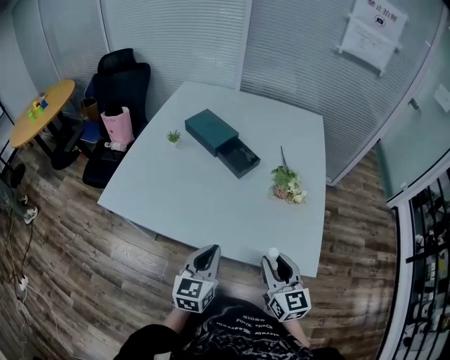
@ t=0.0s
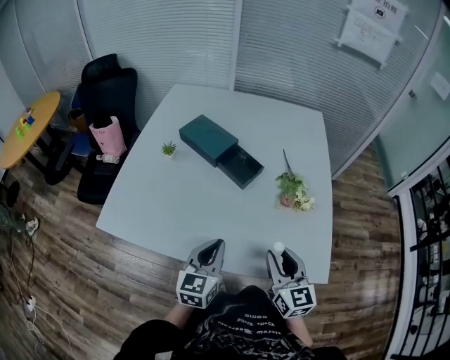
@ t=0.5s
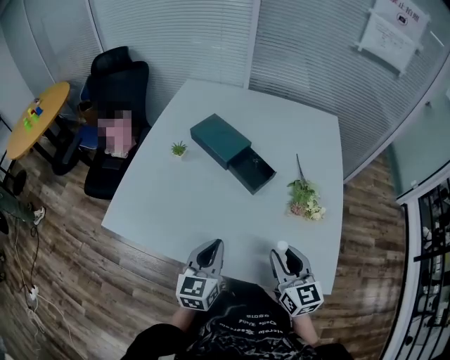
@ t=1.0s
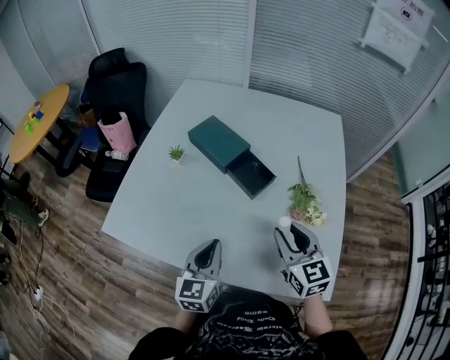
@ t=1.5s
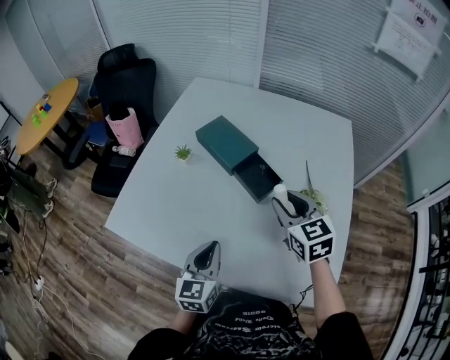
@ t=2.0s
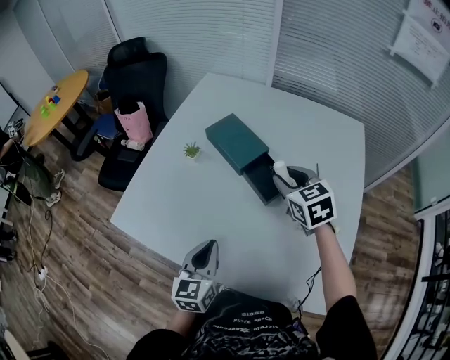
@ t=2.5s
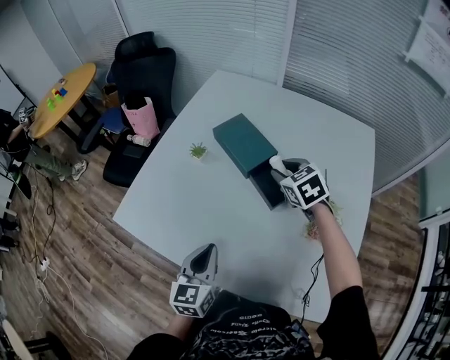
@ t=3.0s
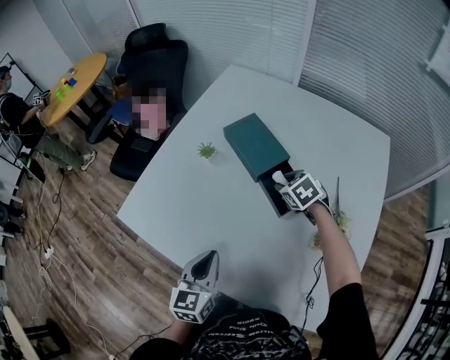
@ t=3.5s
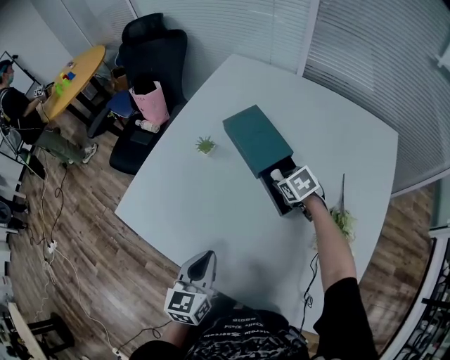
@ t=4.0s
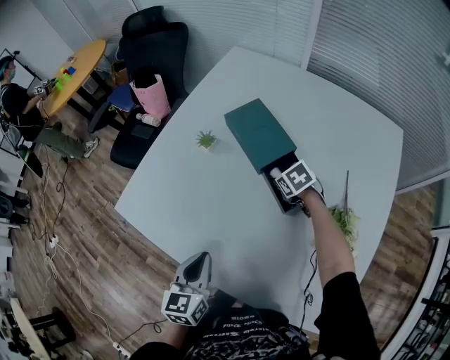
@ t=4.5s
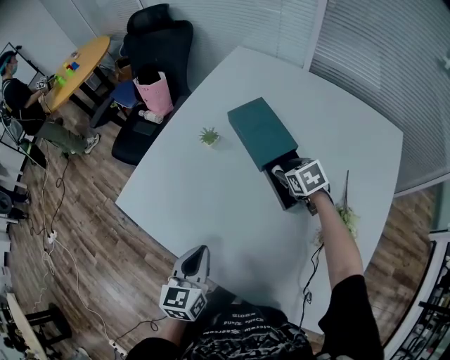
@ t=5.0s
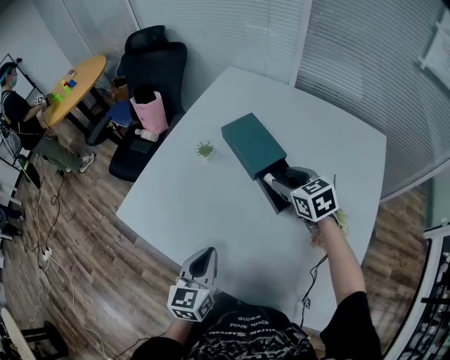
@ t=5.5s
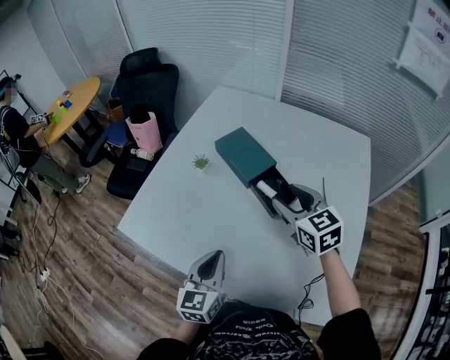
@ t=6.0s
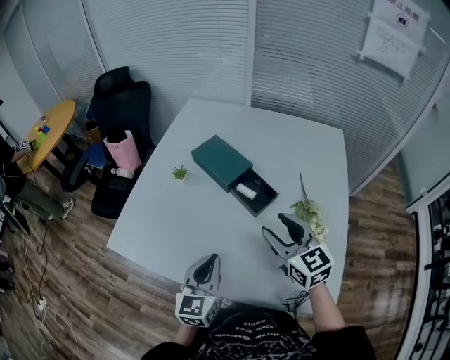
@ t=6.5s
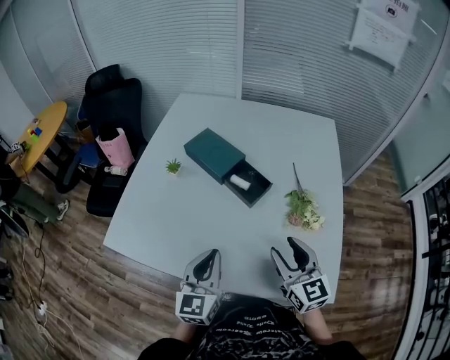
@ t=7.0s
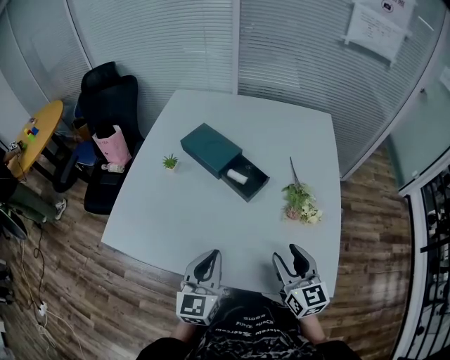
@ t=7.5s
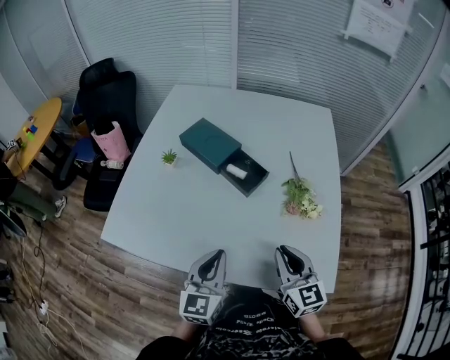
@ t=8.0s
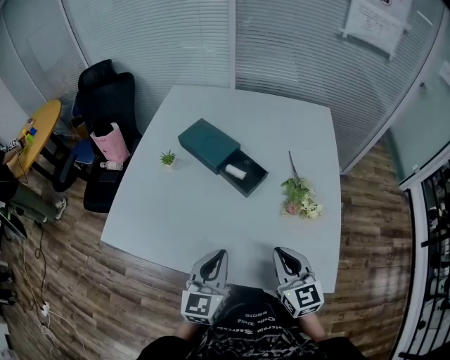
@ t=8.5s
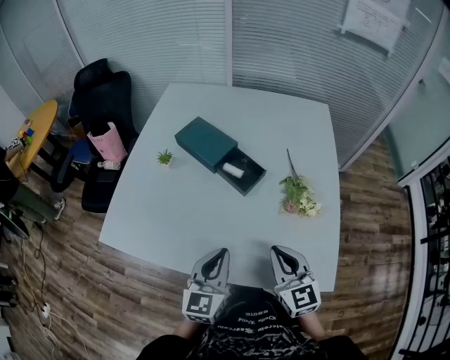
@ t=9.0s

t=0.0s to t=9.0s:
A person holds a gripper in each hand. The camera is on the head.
t=0.0s to t=2.0s: The left gripper moves forward, about 15 cm. Meanwhile the right gripper travels forward by roughly 30 cm.
t=2.0s to t=4.5s: The left gripper changes place by some 5 cm, while the right gripper is displaced downward and forward by roughly 30 cm, and tilts its fingers about 40 degrees downward.
t=4.5s to t=7.0s: The right gripper changes place by some 40 cm, and points its fingers approximately 50 degrees further upward. The left gripper is displaced upward by approximately 10 cm, and changes its angle by roughly 30 degrees.
t=7.0s to t=9.0s: The right gripper closes its fingers.

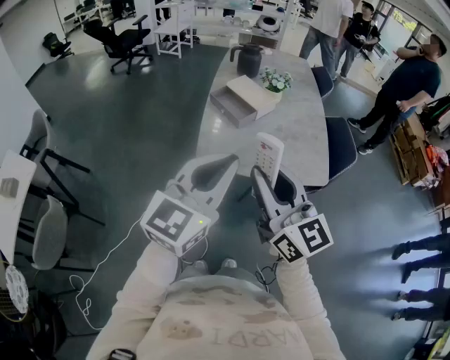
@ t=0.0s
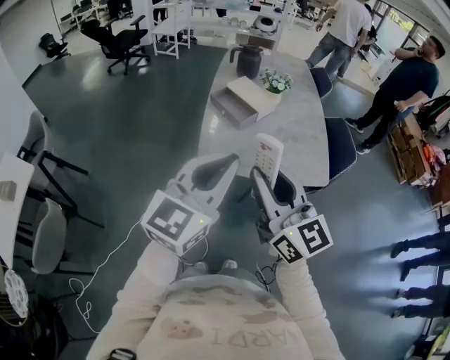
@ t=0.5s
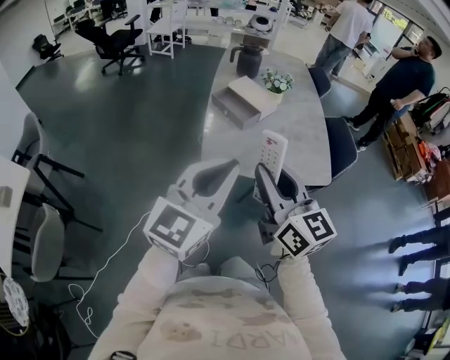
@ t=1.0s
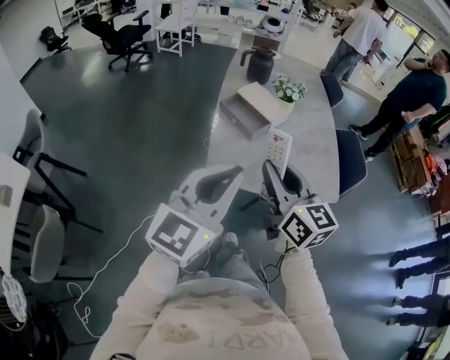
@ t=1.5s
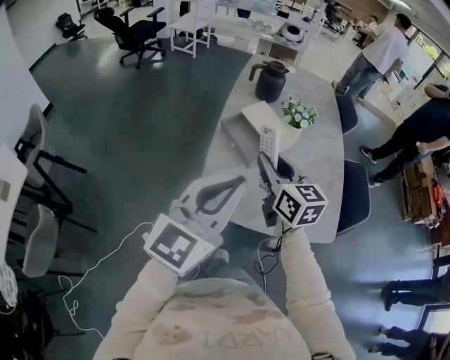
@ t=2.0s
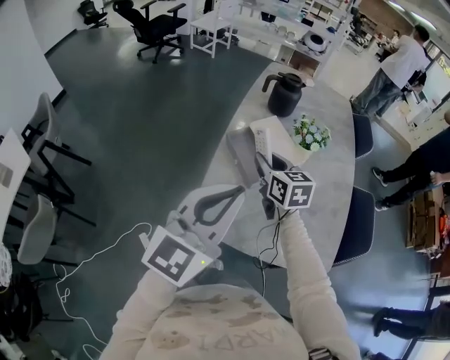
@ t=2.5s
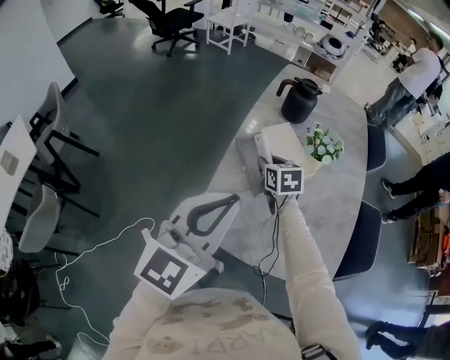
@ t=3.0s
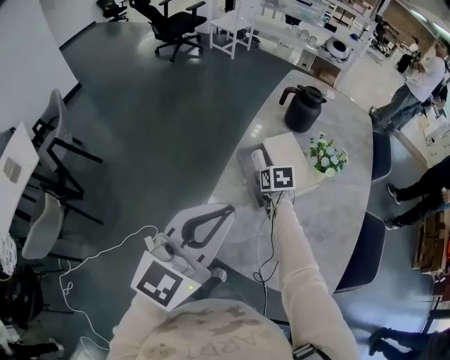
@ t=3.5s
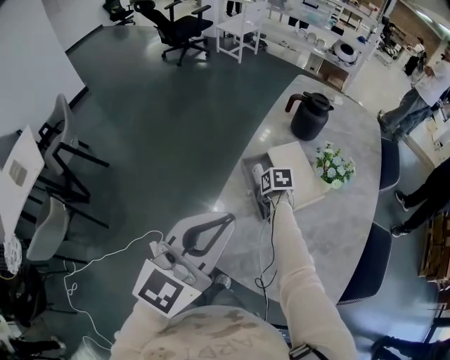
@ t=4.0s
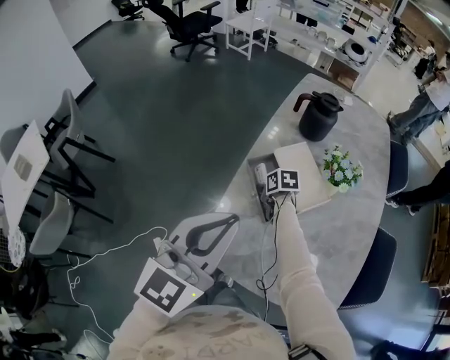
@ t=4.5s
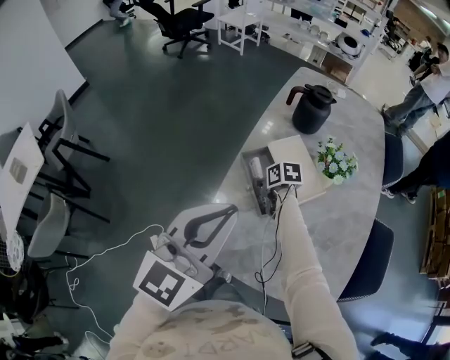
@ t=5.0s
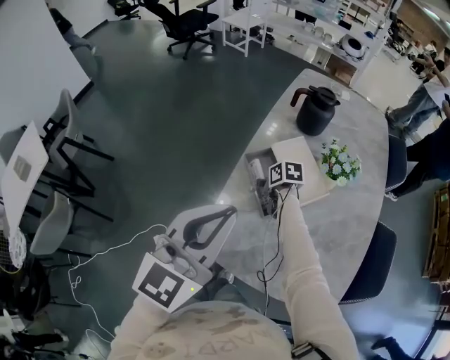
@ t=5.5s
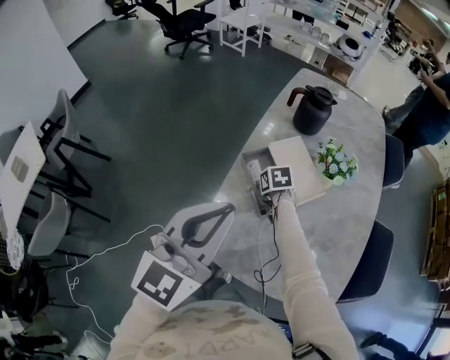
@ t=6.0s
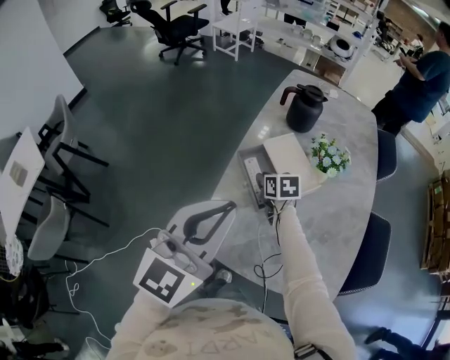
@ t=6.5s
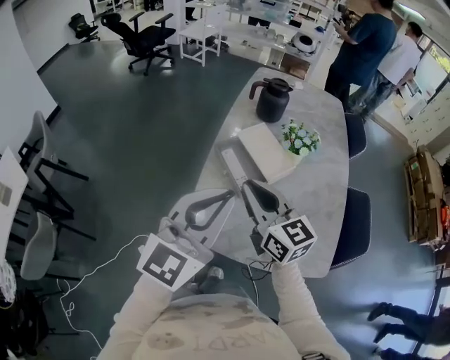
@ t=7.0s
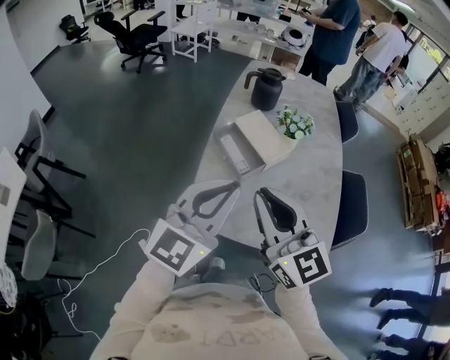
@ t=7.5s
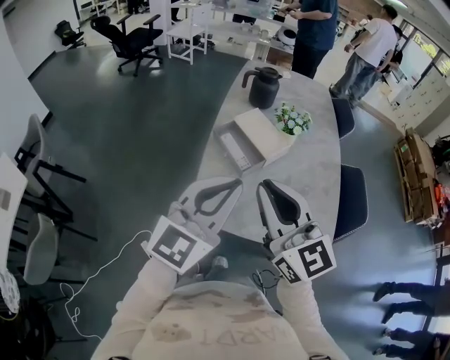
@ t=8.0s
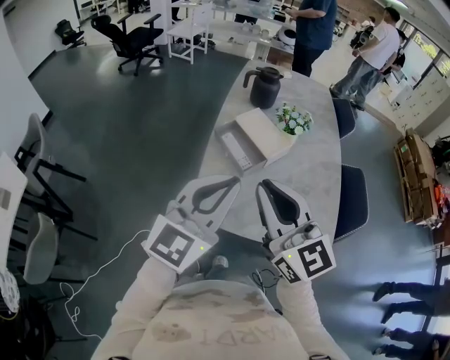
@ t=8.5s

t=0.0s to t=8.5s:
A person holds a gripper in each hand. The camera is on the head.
t=0.0s to t=2.0s: The right gripper moves forward, approximately 30 cm, and swivels about 20 degrees. Meanwhile the left gripper heads forward, covering some 20 cm.
t=2.0s to t=4.0s: The right gripper is displaced downward and forward by some 40 cm, and tilts its fingers about 50 degrees downward. Meanwhile the left gripper is displaced forward by about 15 cm.
t=4.0s to t=6.5s: The right gripper goes about 5 cm upward.
t=6.5s to t=8.5s: The right gripper goes about 50 cm upward and backward, and angles its fingers upward, by some 50 degrees. The left gripper heads backward, covering roughly 10 cm.

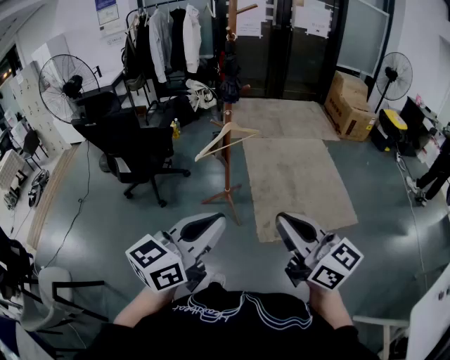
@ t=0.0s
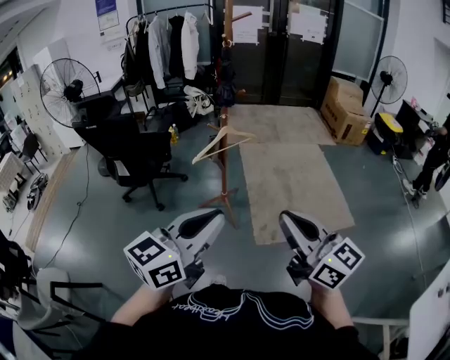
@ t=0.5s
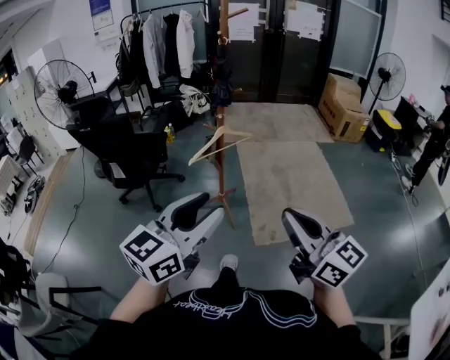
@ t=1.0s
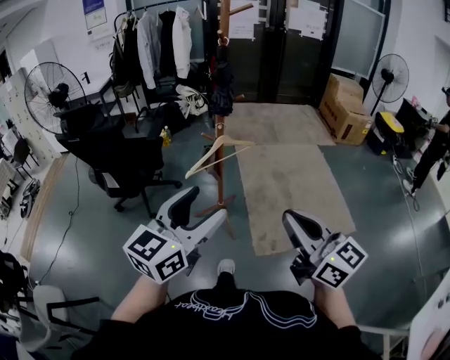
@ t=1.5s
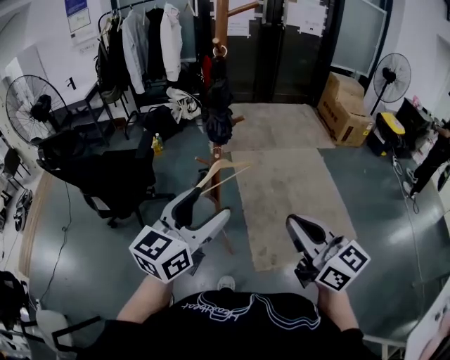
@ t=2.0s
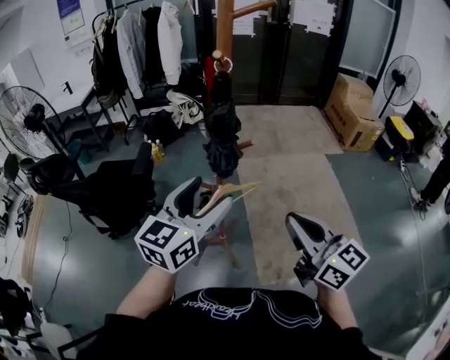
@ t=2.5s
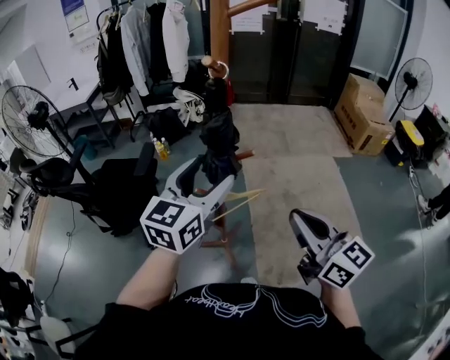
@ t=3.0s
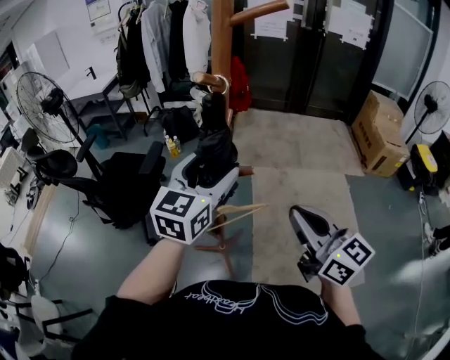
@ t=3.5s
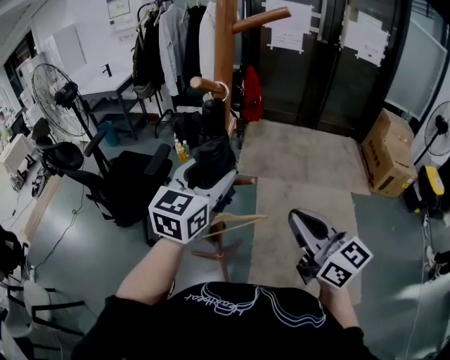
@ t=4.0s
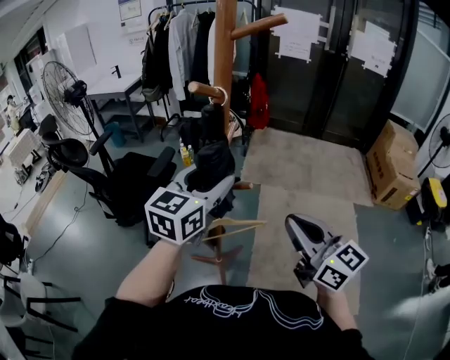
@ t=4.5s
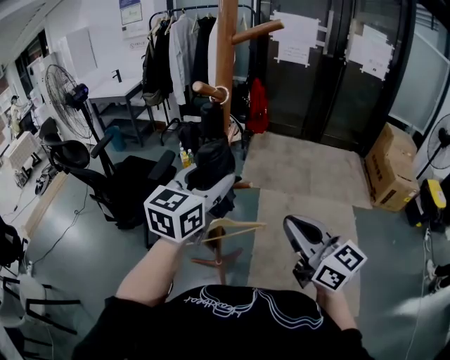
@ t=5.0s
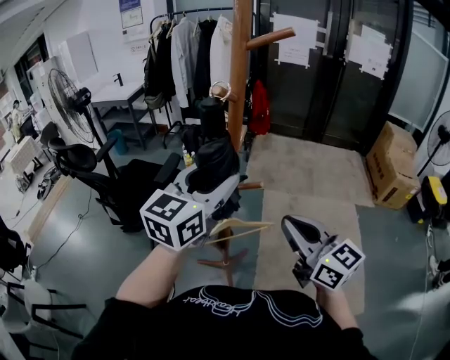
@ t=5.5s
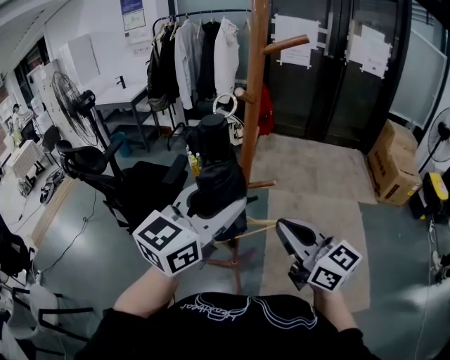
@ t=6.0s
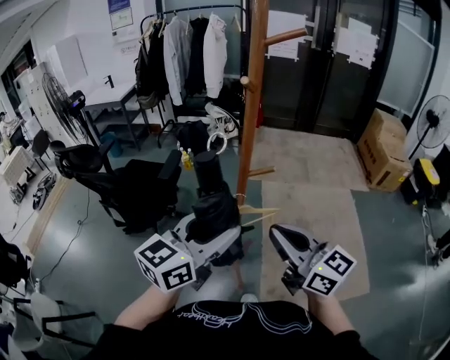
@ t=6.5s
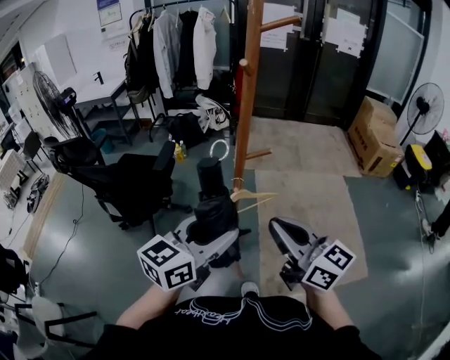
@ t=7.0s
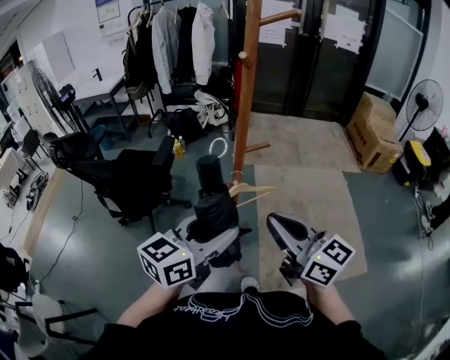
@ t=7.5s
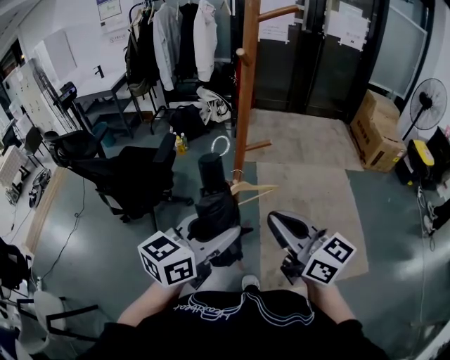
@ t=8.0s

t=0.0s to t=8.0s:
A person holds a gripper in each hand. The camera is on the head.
t=0.0s to t=2.0s: The two grippers go roughly 25 cm forward. The left gripper opens up.
t=2.0s to t=4.0s: The two grippers go roughly 30 cm forward. The left gripper turns by roughly 20 degrees.
t=4.0s to t=6.0s: The left gripper shifts approximately 15 cm backward, upward and to the left. Meanwhile the right gripper moves to the left, roughly 10 cm.
t=6.0s to t=8.0s: The right gripper is displaced backward by about 10 cm. Meanwhile the left gripper goes some 15 cm downward and backward, and rotates some 20 degrees.

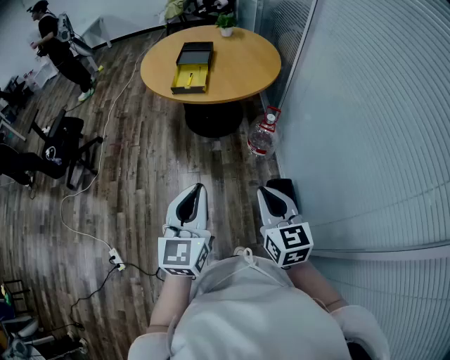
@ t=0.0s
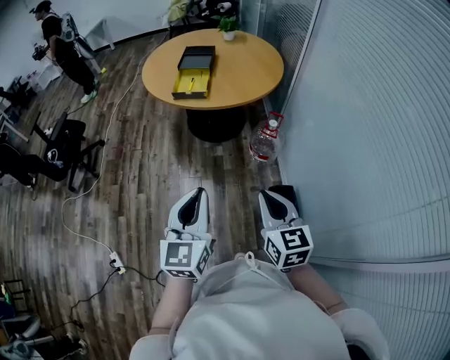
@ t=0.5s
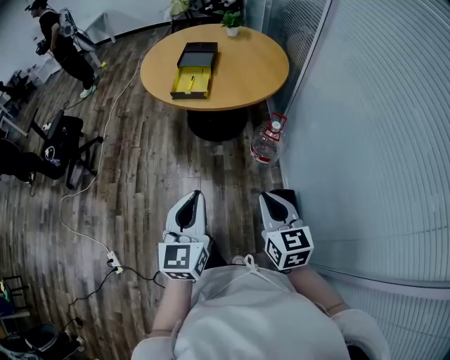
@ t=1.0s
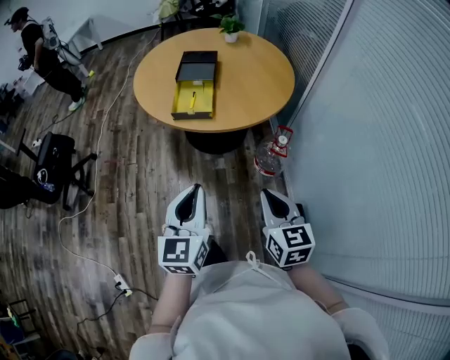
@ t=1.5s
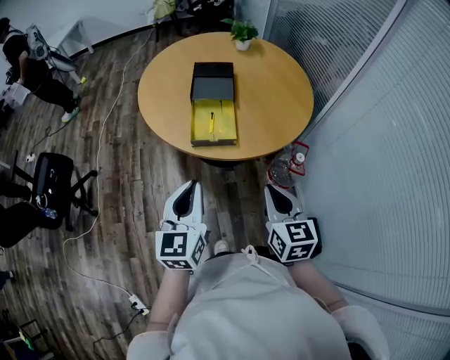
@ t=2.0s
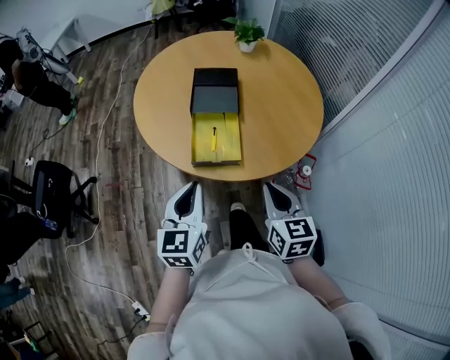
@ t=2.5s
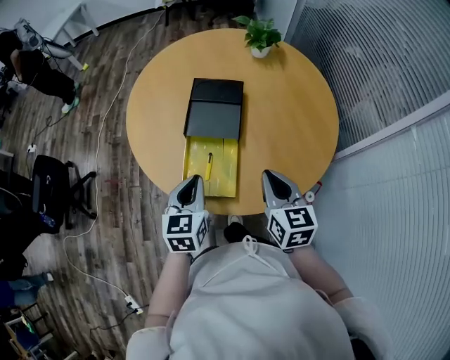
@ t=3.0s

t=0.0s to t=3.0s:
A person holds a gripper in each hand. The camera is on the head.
t=0.0s to t=1.5s: Both grippers travel together forward, approximately 25 cm.
t=1.5s to t=3.0s: The pair of grippers is taken forward, some 50 cm.
